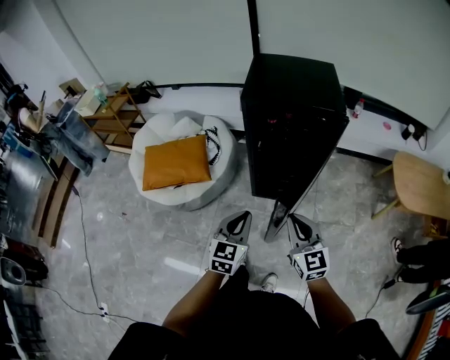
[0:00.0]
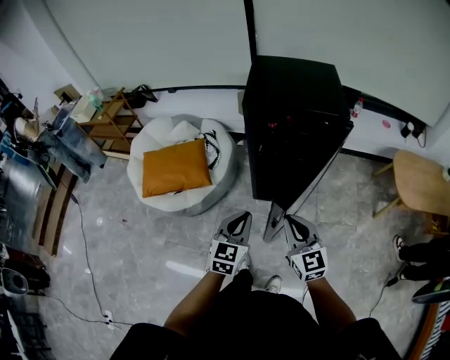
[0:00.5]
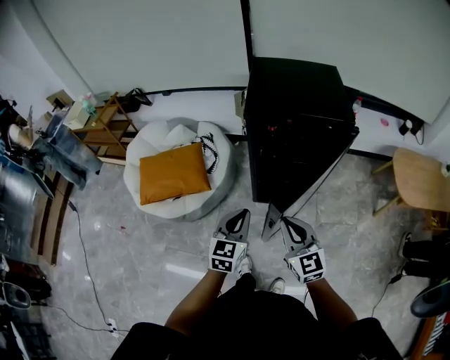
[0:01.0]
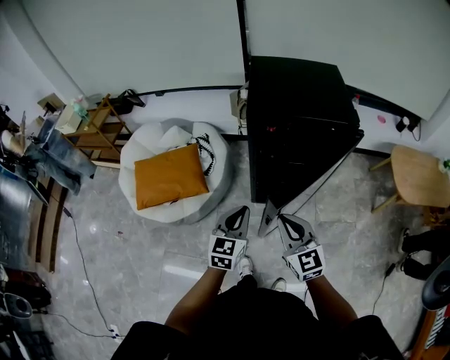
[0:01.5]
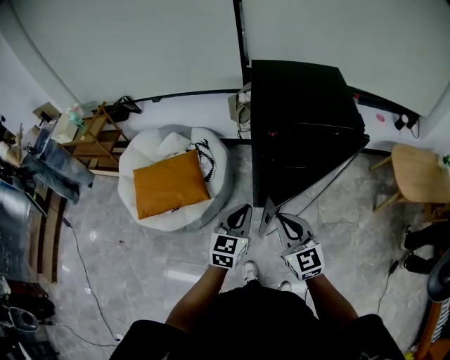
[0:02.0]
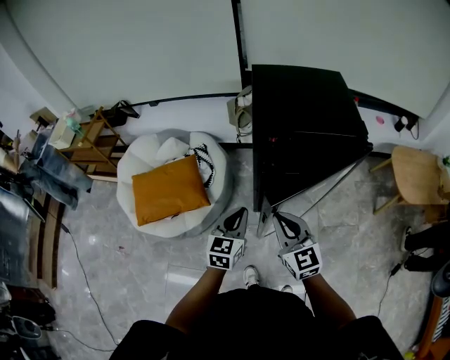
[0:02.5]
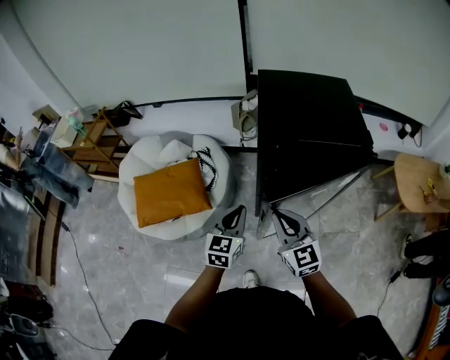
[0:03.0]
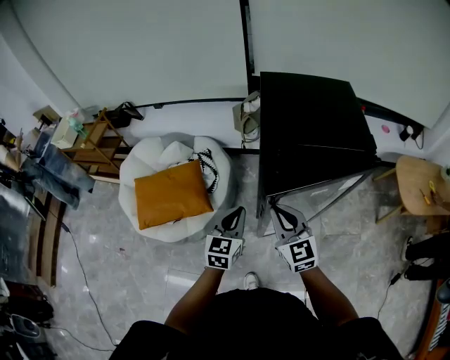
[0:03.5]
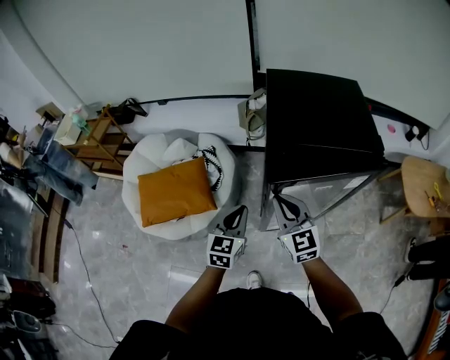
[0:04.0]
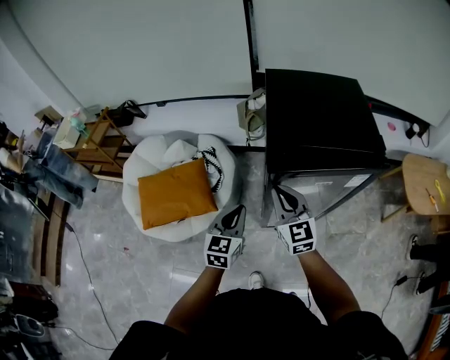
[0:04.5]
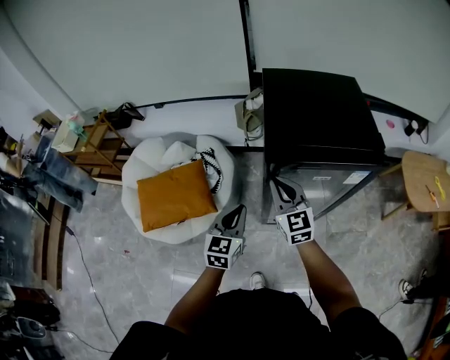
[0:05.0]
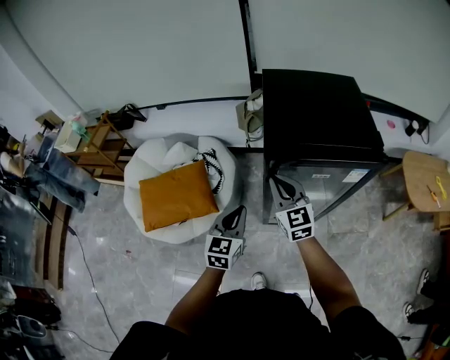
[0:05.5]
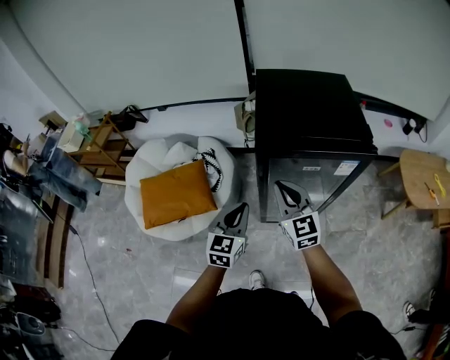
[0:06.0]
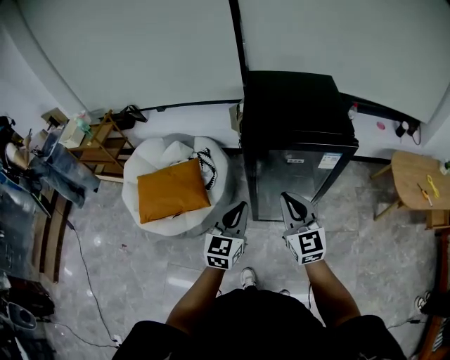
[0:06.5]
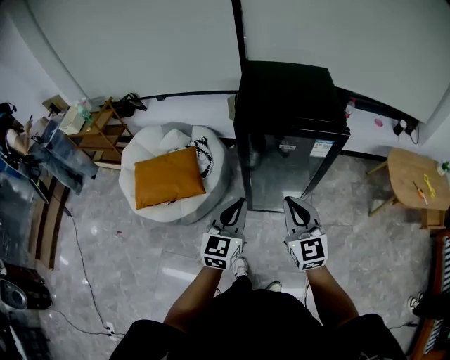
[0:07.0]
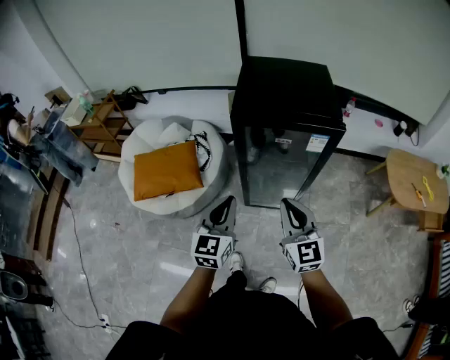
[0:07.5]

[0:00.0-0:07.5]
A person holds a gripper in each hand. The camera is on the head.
0:00.0 to 0:02.0: The grippers both shift forward and to the left by approximately 15 cm.
0:02.0 to 0:04.0: The left gripper goes roughly 10 cm forward. The right gripper is displaced forward by about 15 cm.
0:04.0 to 0:05.5: The right gripper is displaced forward by about 5 cm.
0:05.5 to 0:07.5: The left gripper is displaced backward, upward and to the right by some 20 cm. Meanwhile the right gripper moves backward and to the right, about 25 cm.

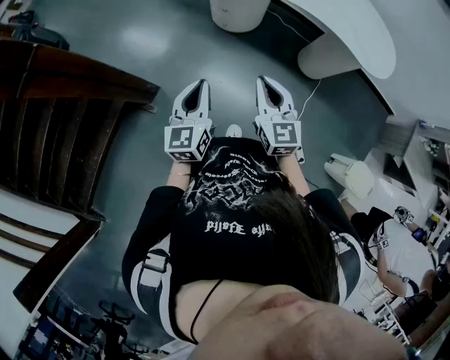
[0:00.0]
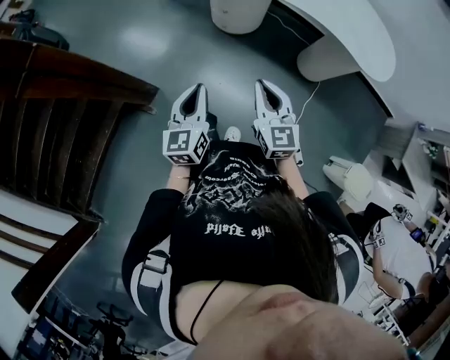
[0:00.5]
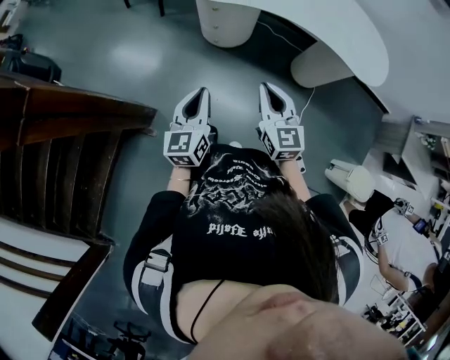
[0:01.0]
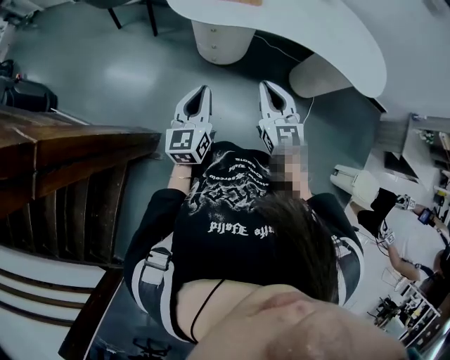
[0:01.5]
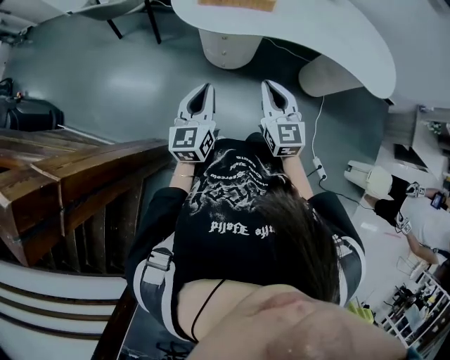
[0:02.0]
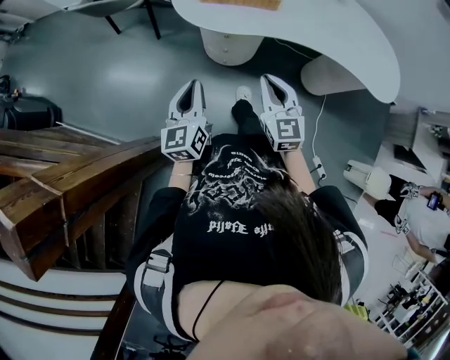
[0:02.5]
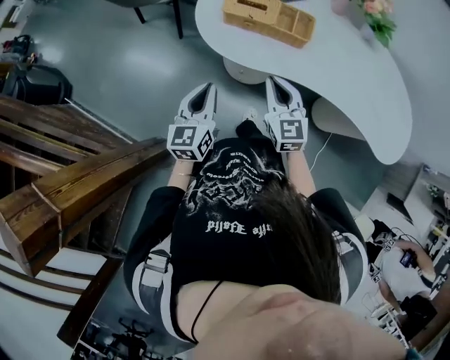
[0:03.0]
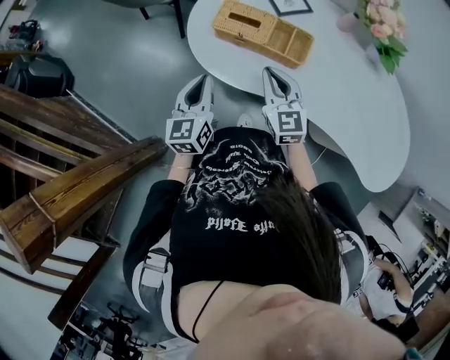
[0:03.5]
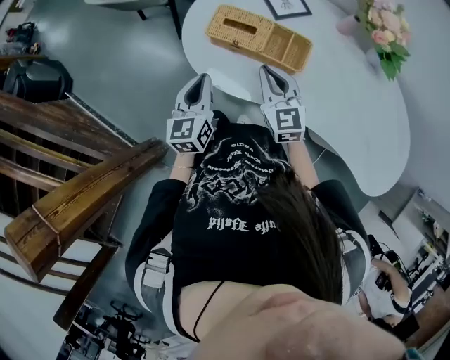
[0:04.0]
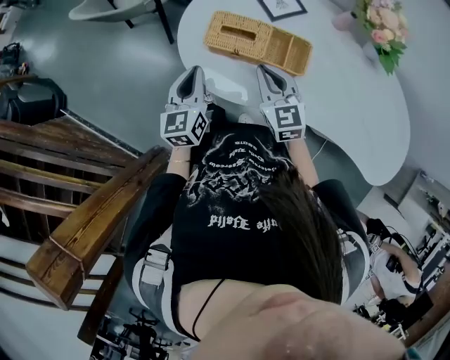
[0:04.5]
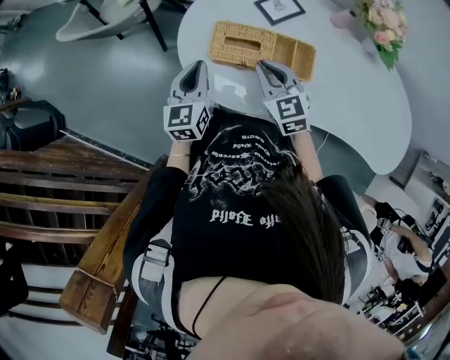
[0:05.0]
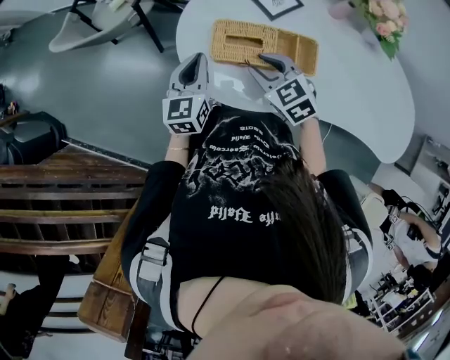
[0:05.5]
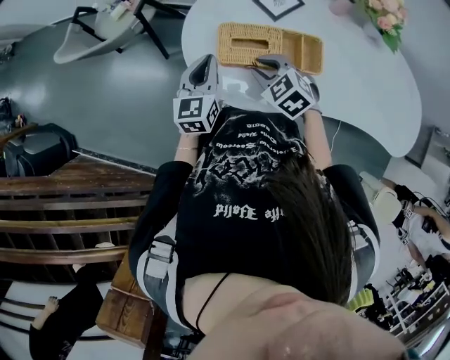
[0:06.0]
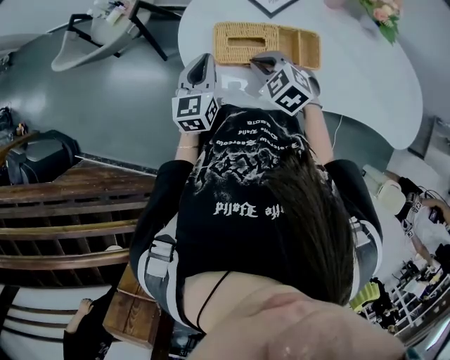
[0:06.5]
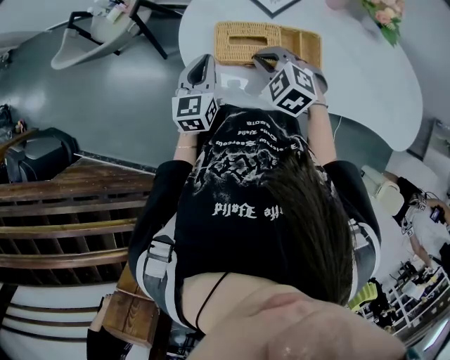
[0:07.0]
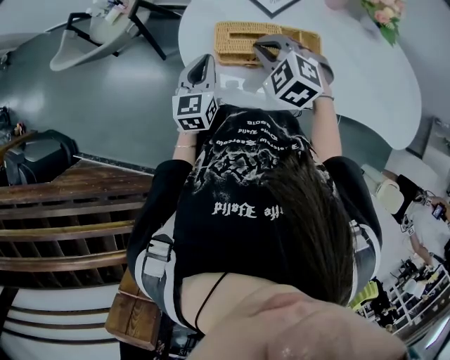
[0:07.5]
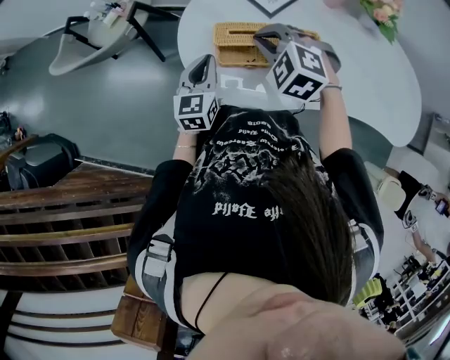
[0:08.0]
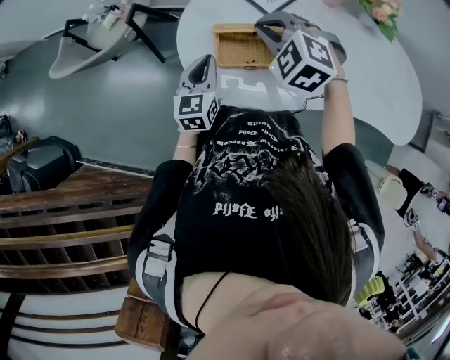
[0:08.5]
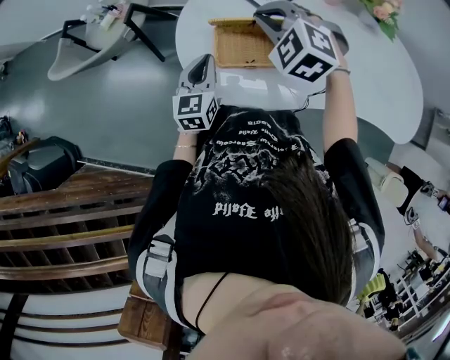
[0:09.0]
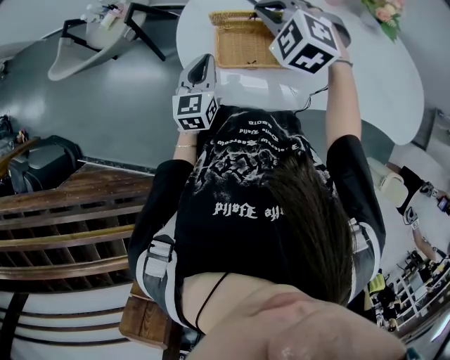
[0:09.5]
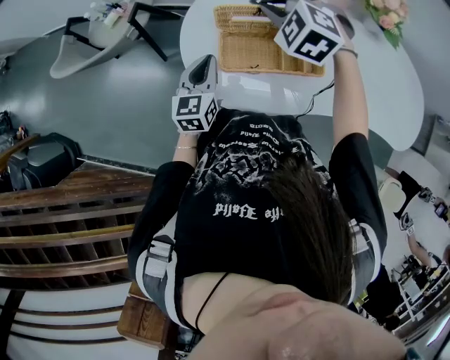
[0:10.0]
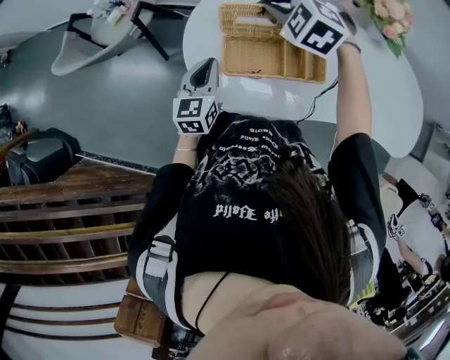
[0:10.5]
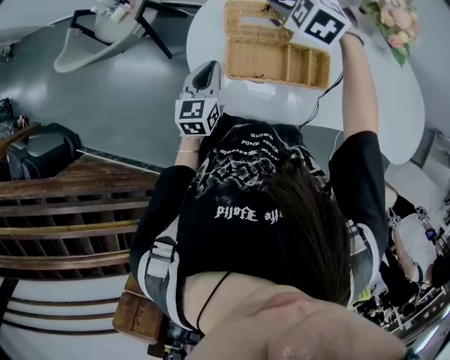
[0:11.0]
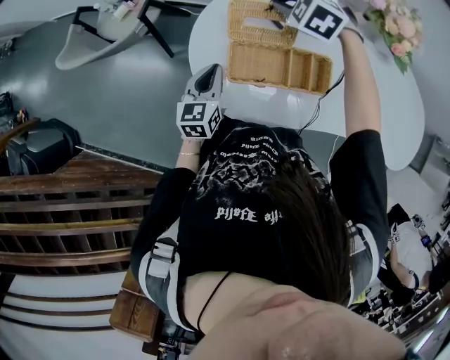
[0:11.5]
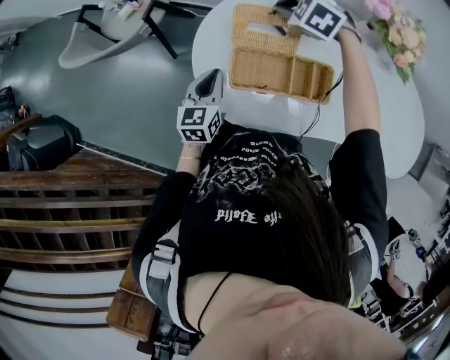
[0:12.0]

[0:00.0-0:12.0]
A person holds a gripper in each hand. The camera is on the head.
0:00.0 to 0:02.0: The right gripper is displaced forward and to the left by roughly 35 cm; the left gripper heads forward, covering roughly 35 cm.
0:02.0 to 0:04.0: The two grippers go roughly 40 cm forward. The left gripper changes its angle by approximately 20 degrees. The right gripper turns by approximately 20 degrees.
0:04.0 to 0:06.0: The right gripper heads forward, downward and to the left, covering about 15 cm, angles its fingers downward, by some 30 degrees, and opens up. Meanwhile the left gripper is displaced forward by approximately 20 cm, and turns by some 20 degrees.
0:06.0 to 0:08.0: The right gripper shifts approximately 10 cm upward and forward, and swivels some 20 degrees.
0:08.0 to 0:10.0: The right gripper shifts approximately 10 cm forward.
0:10.0 to 0:12.0: The right gripper moves forward and downward, approximately 10 cm.

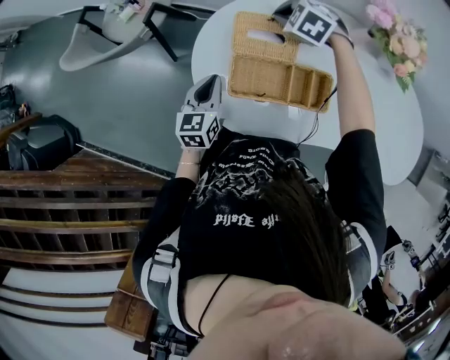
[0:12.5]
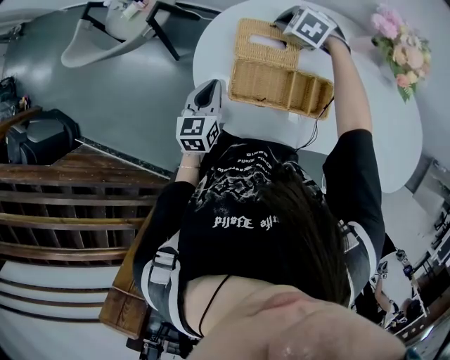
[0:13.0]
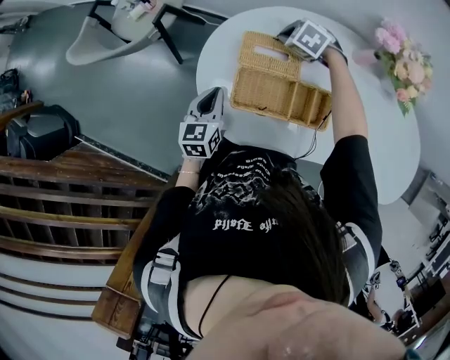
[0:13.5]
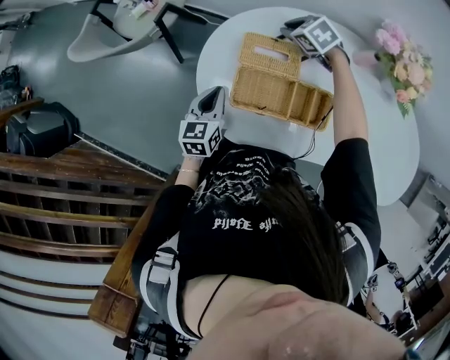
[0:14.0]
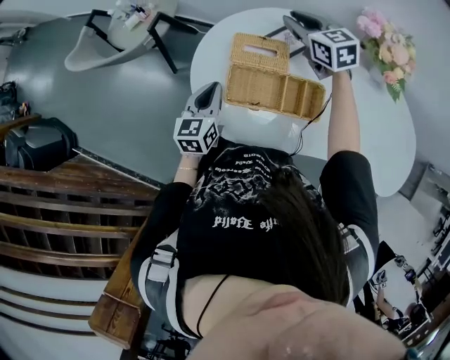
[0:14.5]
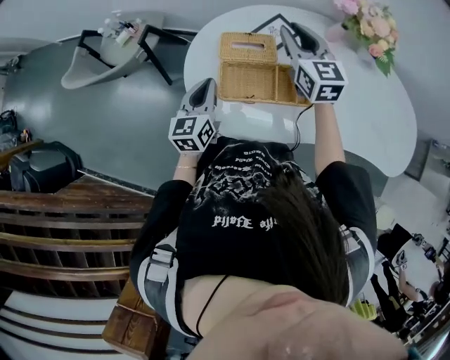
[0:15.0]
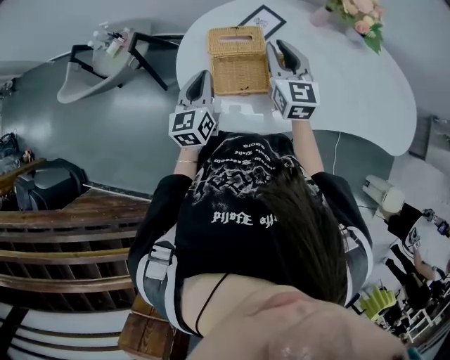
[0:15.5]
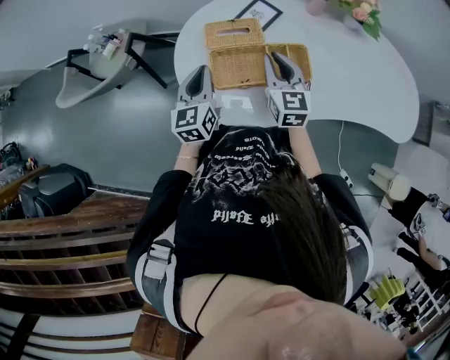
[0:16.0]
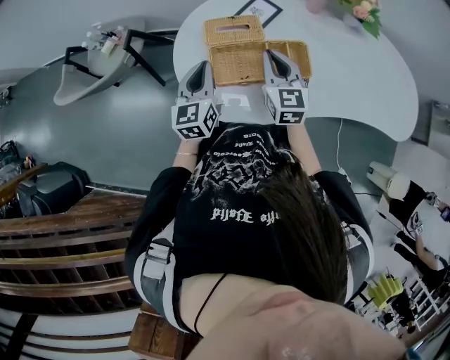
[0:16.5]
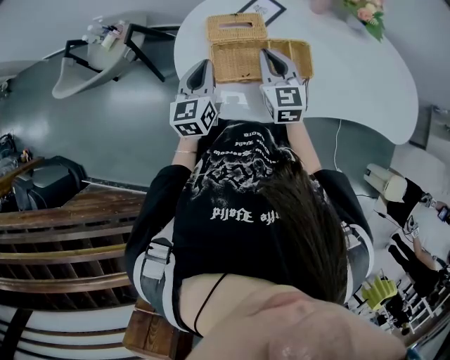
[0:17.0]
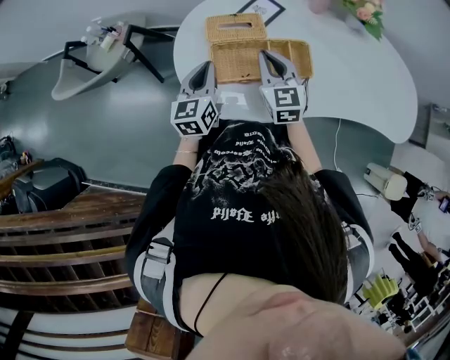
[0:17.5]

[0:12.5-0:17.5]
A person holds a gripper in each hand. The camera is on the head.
0:12.5 to 0:15.0: The left gripper ends up roughly 5 cm from where it was, while the right gripper is displaced upward by about 15 cm, and angles its fingers upward, by about 50 degrees.
0:15.0 to 0:17.5: The right gripper goes roughly 15 cm backward and downward, and closes its fingers.

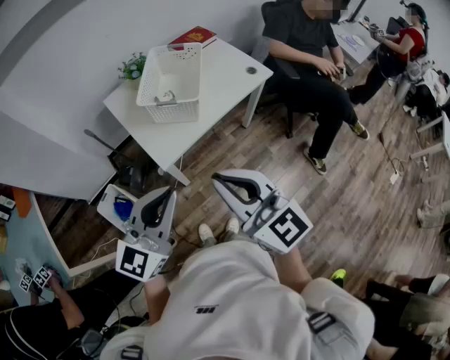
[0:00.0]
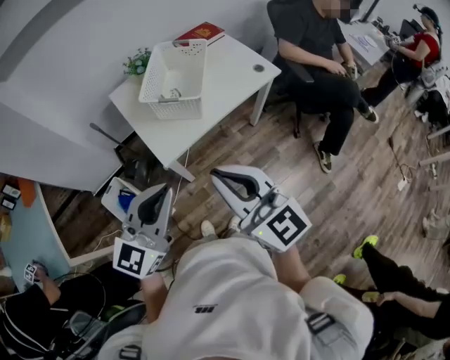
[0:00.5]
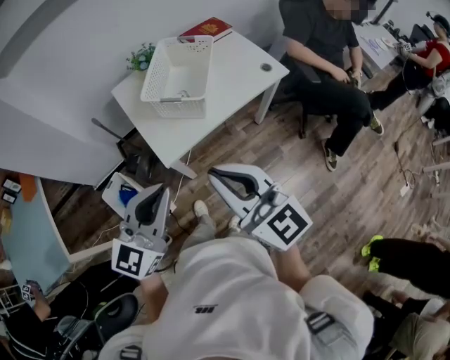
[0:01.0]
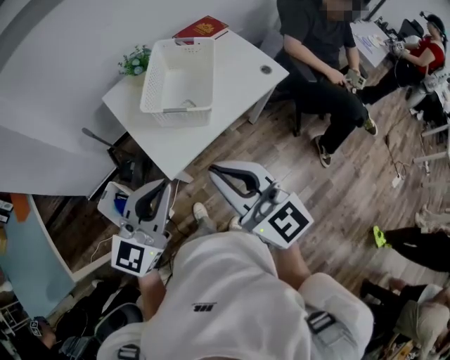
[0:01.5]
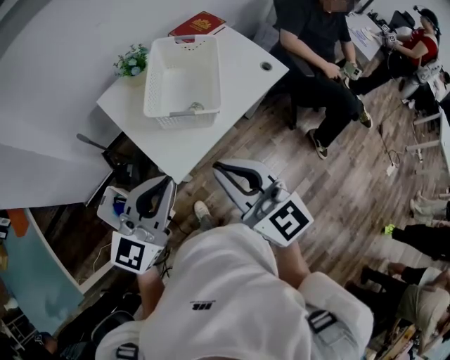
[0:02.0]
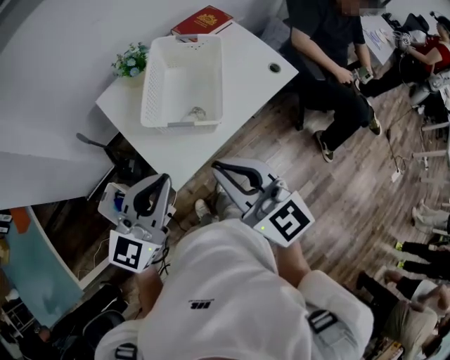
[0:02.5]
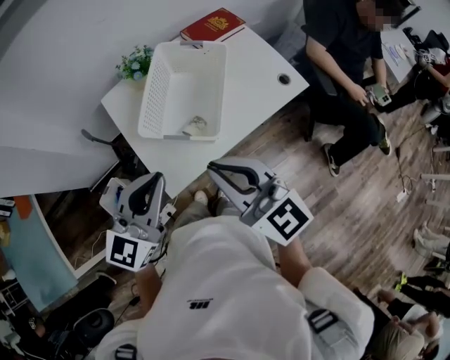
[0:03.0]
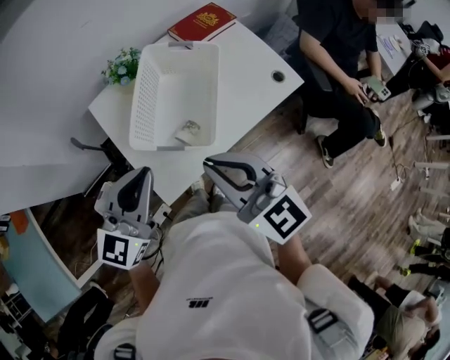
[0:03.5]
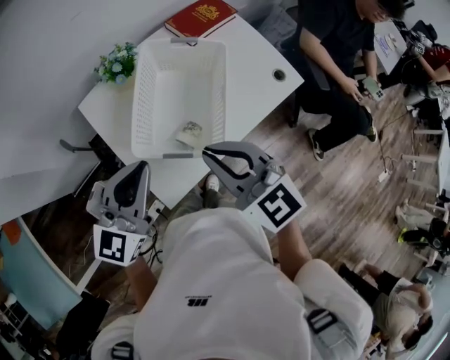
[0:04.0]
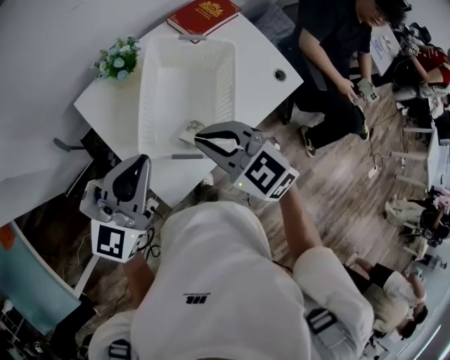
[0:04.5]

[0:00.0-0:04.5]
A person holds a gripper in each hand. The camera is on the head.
0:00.0 to 0:02.0: The left gripper goes some 20 cm forward and to the left. The right gripper goes roughly 15 cm forward.
0:02.0 to 0:04.5: The right gripper heads forward and downward, covering some 25 cm, and angles its fingers downward, by some 30 degrees, while the left gripper heads forward, covering about 25 cm.
